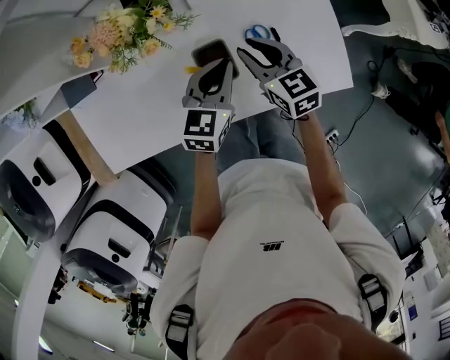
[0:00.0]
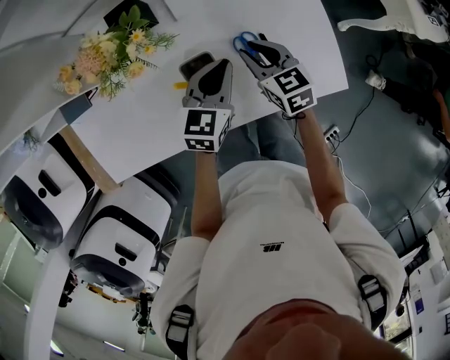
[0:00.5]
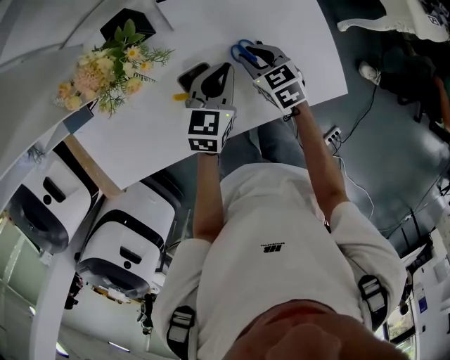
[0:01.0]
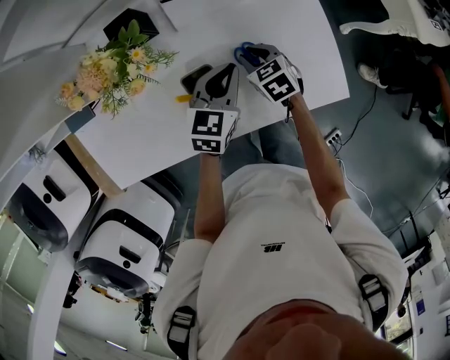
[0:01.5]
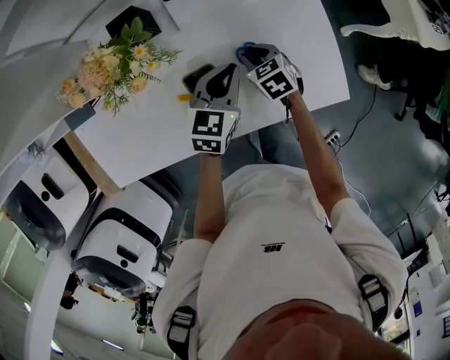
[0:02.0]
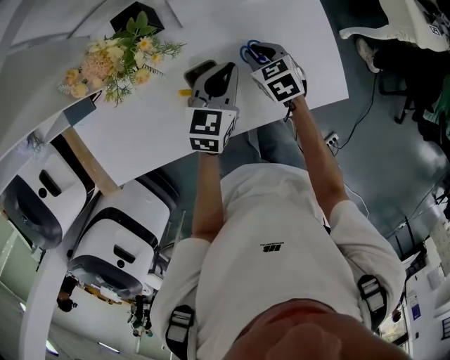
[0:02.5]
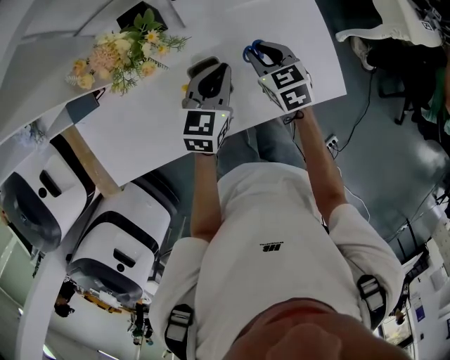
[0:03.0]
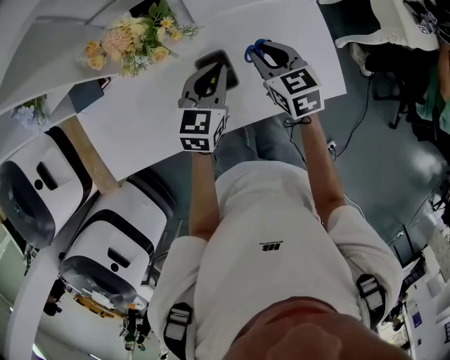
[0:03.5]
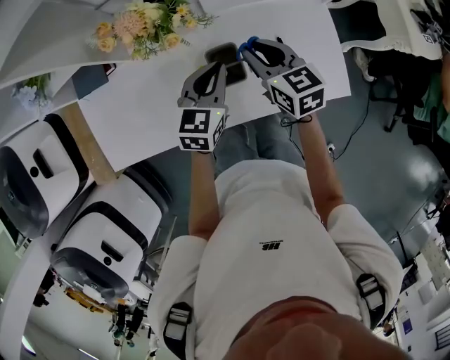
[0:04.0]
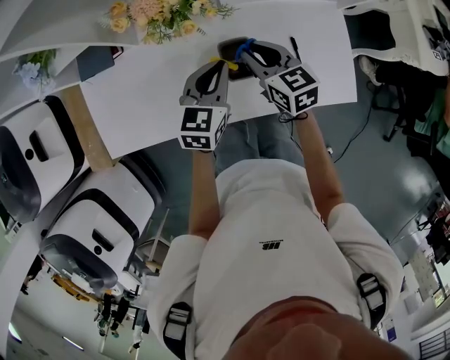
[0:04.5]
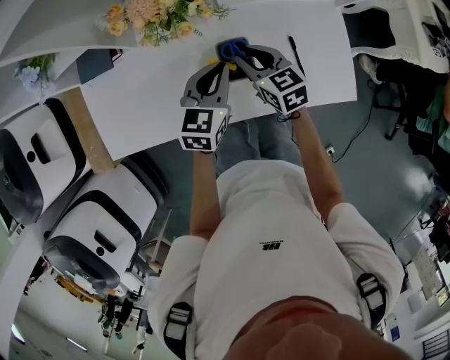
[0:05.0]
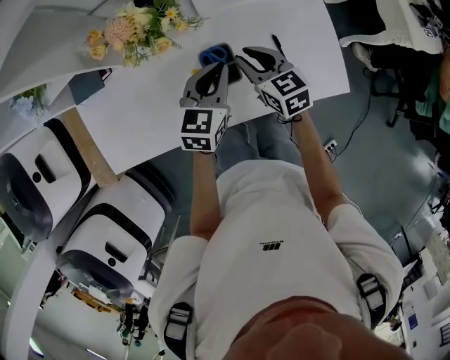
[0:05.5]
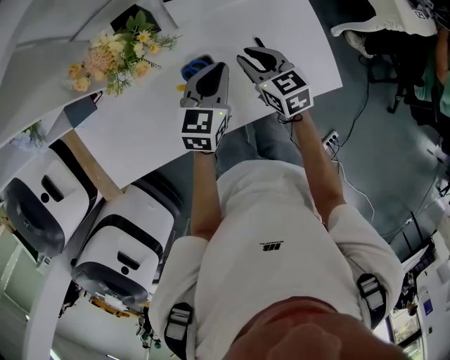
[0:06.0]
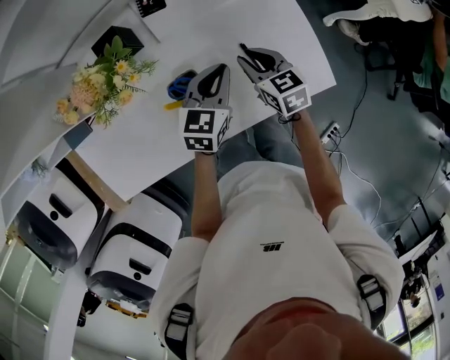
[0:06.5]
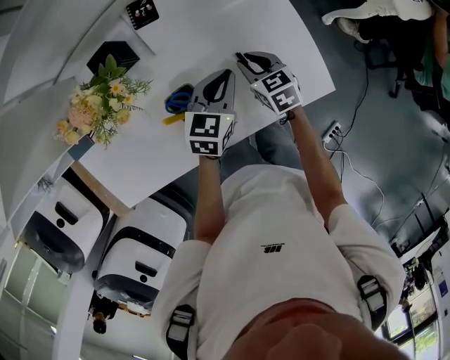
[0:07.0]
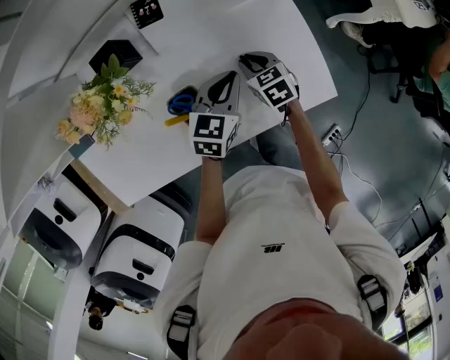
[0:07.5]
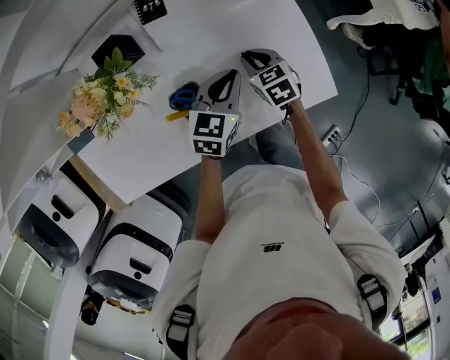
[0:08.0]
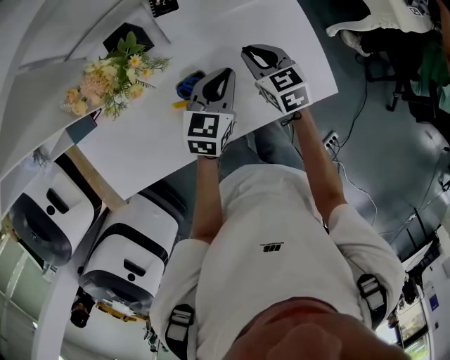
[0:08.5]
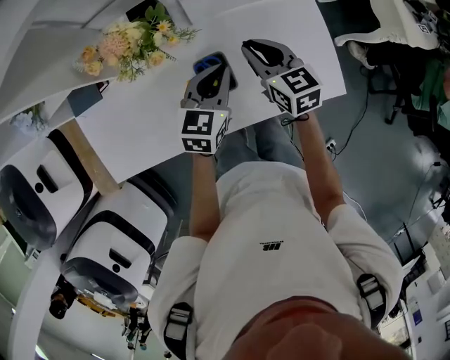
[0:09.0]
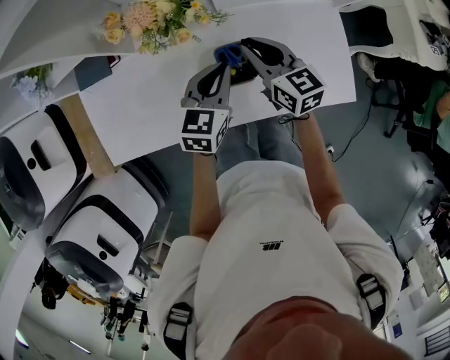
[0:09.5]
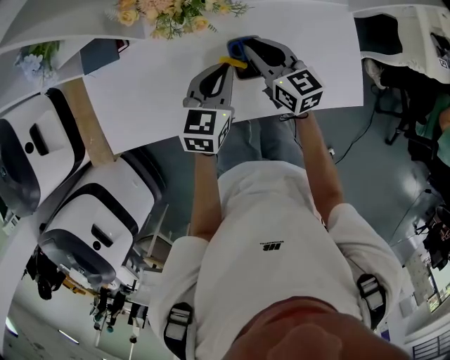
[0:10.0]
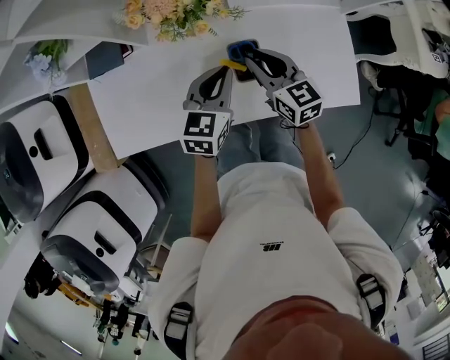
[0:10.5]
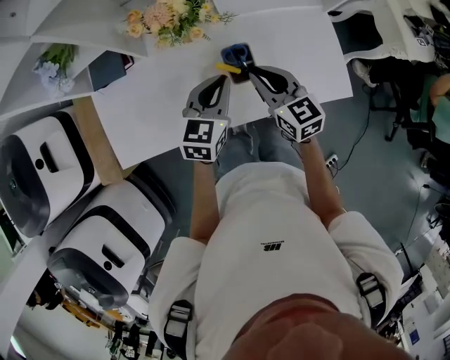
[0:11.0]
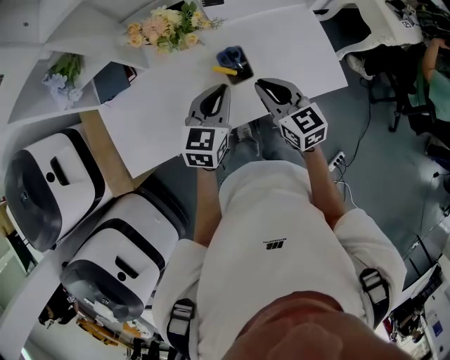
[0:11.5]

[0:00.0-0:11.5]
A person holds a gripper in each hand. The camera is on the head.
0.0 to 2.0 s: The right gripper shifts roughly 15 cm downward, and swivels about 30 degrees. Meanwhile the left gripper shifts some 5 cm to the right.
2.0 to 4.0 s: The left gripper heads to the left and upward, covering approximately 10 cm. Meanwhile the right gripper shifts some 20 cm upward, and changes its angle by approximately 30 degrees.
4.0 to 6.0 s: The left gripper moves to the right, about 5 cm; the right gripper moves downward and to the right, roughly 10 cm.
6.0 to 7.5 s: The left gripper heads to the right, covering some 10 cm, while the right gripper shifts about 15 cm downward and to the right.
7.5 to 9.5 s: The left gripper shifts about 20 cm to the left and upward; the right gripper heads upward and to the left, covering approximately 25 cm, and tilts its fingers about 30 degrees upward.
9.5 to 11.5 s: The left gripper is displaced backward and upward by approximately 10 cm. Meanwhile the right gripper is displaced backward by roughly 15 cm.

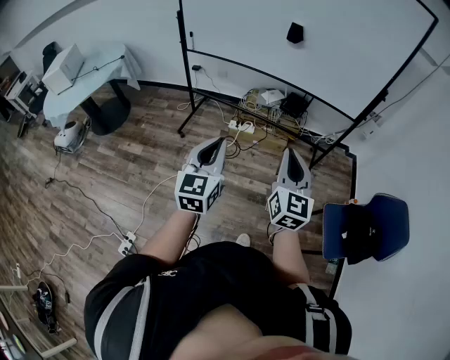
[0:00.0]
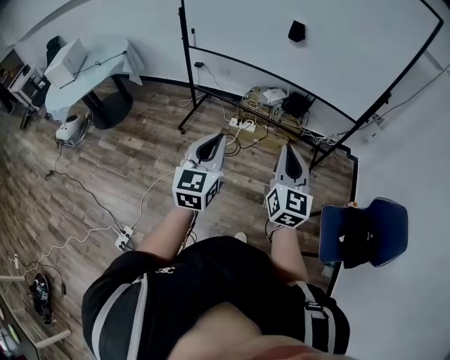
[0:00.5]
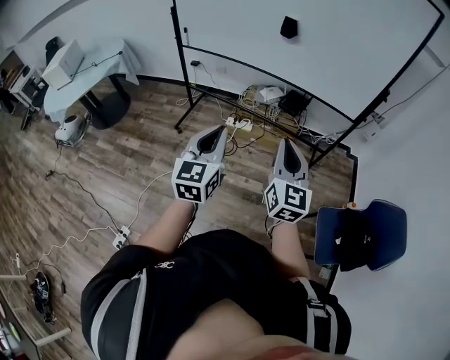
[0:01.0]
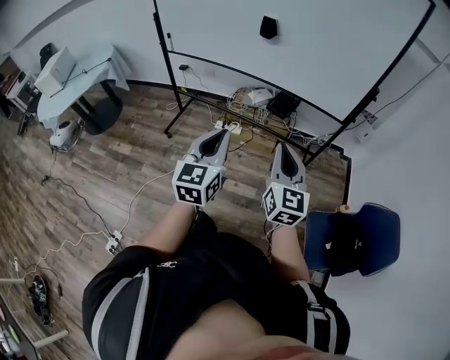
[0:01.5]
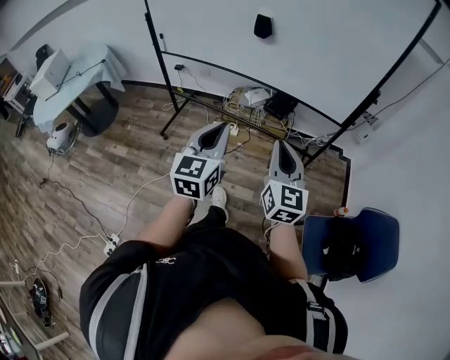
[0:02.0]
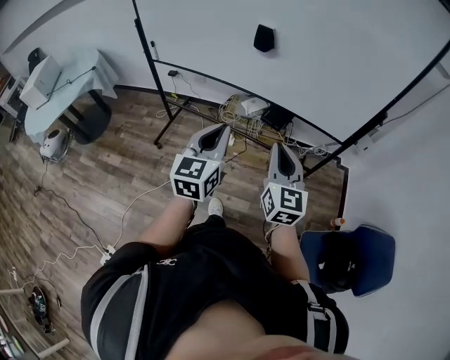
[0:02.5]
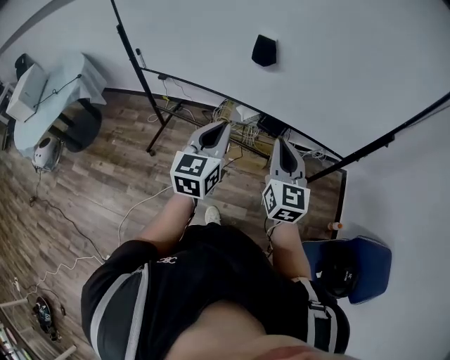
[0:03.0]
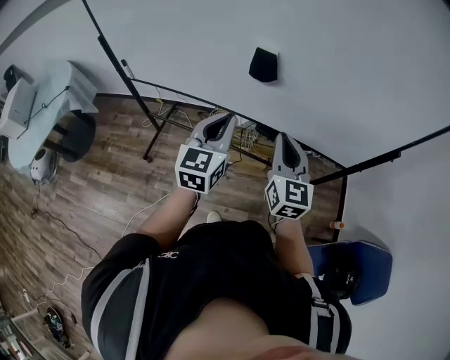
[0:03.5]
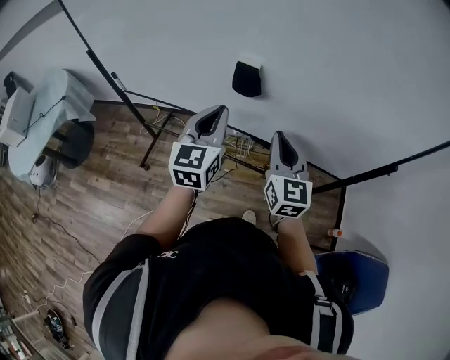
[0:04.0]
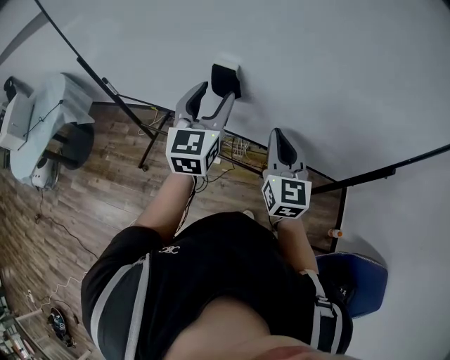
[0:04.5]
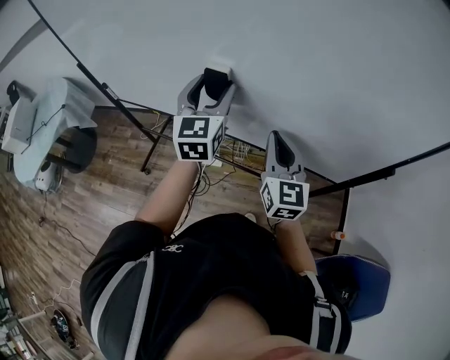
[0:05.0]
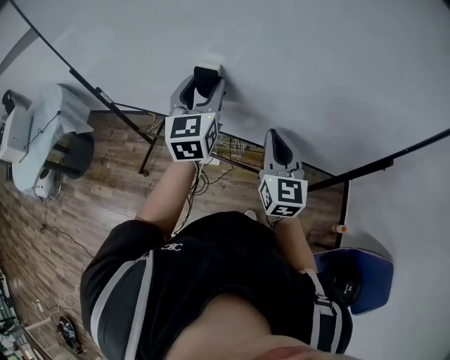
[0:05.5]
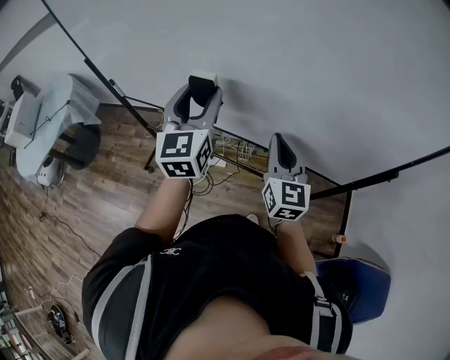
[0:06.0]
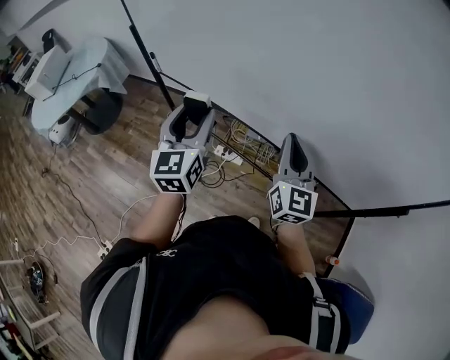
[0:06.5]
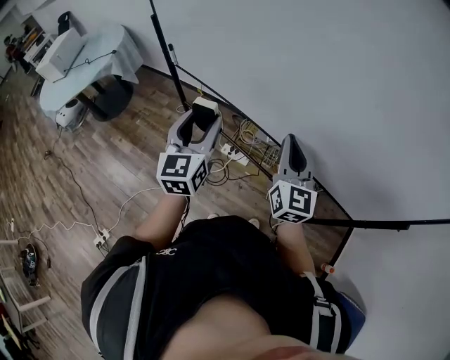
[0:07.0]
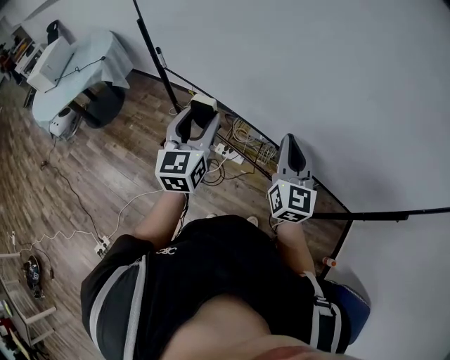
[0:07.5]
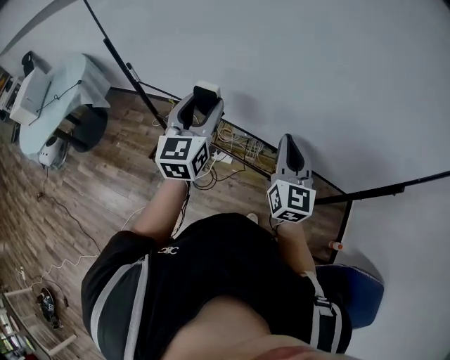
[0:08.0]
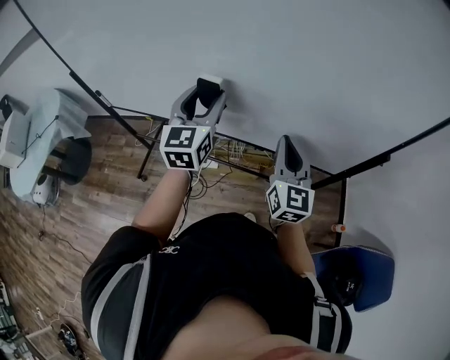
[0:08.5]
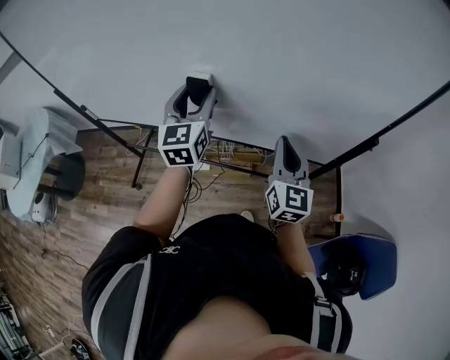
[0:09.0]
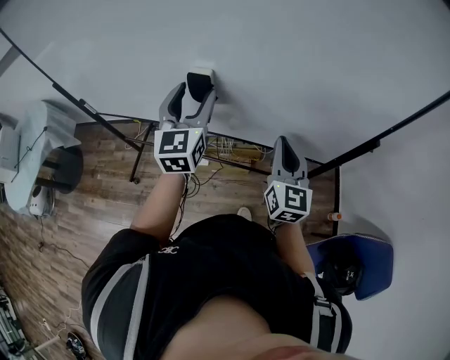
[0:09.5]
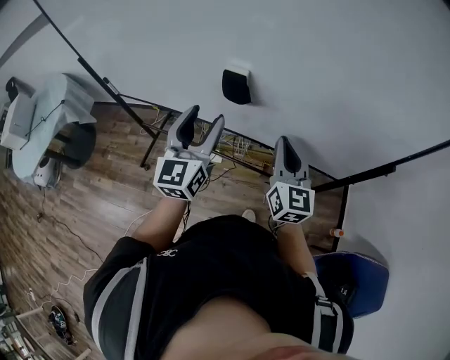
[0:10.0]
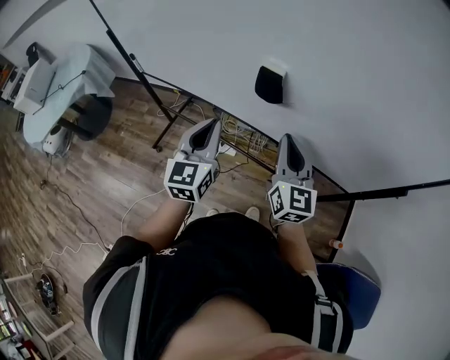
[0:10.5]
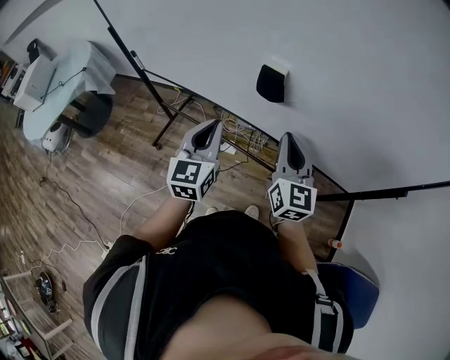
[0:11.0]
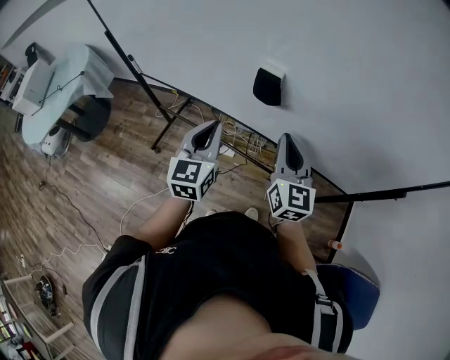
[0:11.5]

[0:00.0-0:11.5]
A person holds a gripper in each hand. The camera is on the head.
0.0 to 2.0 s: The left gripper goes roughly 20 cm to the right and forward, while the right gripper shifts about 20 cm forward and to the right.
2.0 to 4.0 s: The two grippers go some 40 cm forward.
4.0 to 6.0 s: The left gripper moves upward, roughly 5 cm, and opens.
6.0 to 7.5 s: The right gripper heads to the left, covering approximately 10 cm, while the left gripper heads to the left and downward, covering some 15 cm.
7.5 to 9.5 s: The left gripper shifts roughly 20 cm to the right and forward, and turns by some 20 degrees. The right gripper shifts about 20 cm to the right, and changes its angle by some 20 degrees.
9.5 to 11.5 s: The left gripper shifts roughly 15 cm to the left, backward and downward, and closes; the right gripper is displaced to the left by some 10 cm.

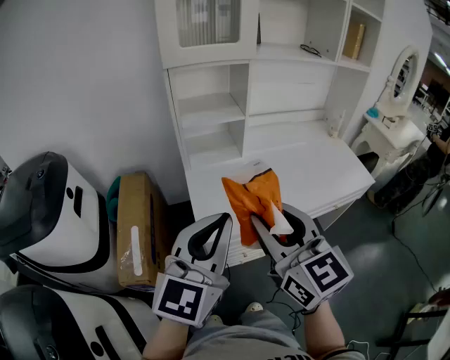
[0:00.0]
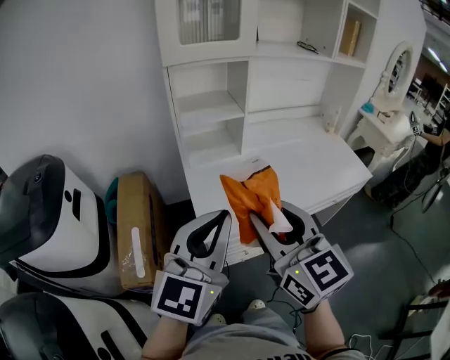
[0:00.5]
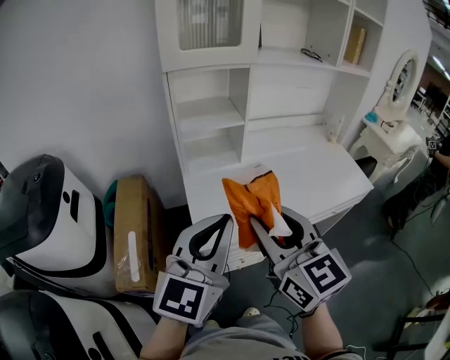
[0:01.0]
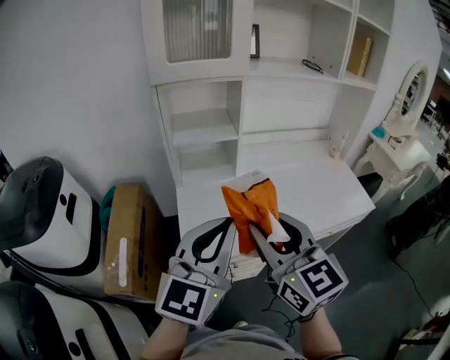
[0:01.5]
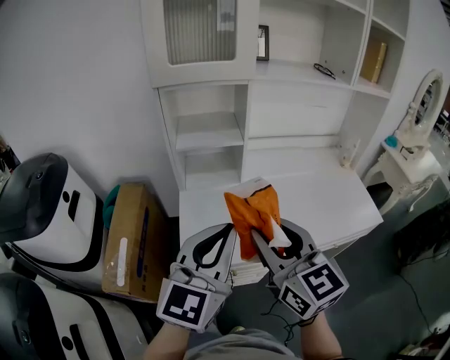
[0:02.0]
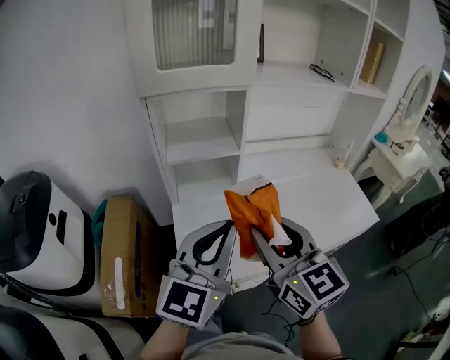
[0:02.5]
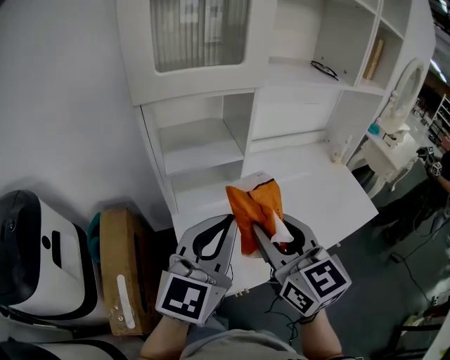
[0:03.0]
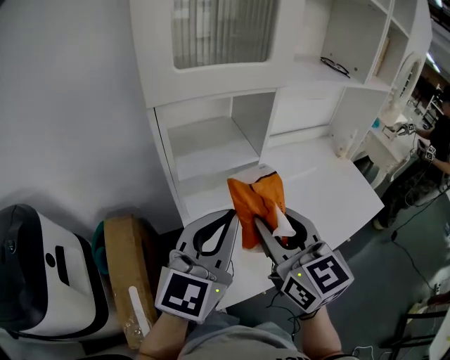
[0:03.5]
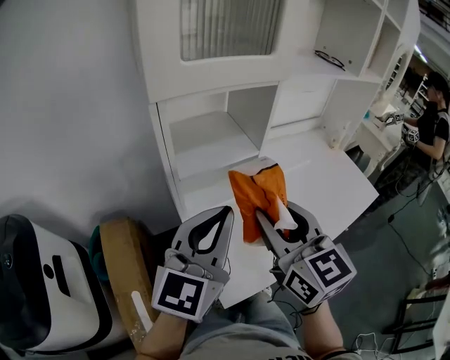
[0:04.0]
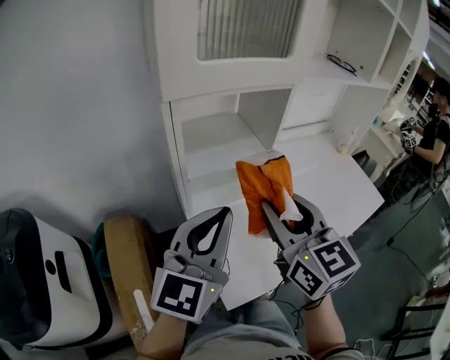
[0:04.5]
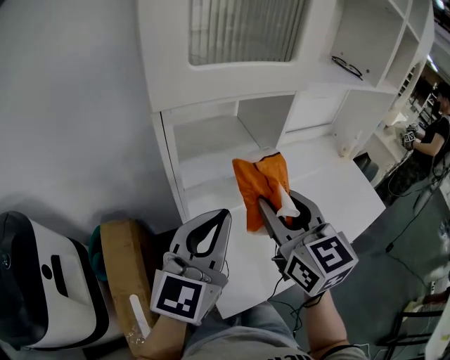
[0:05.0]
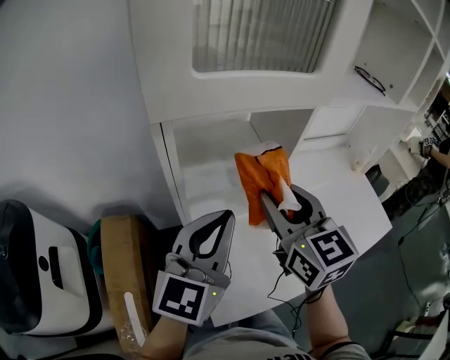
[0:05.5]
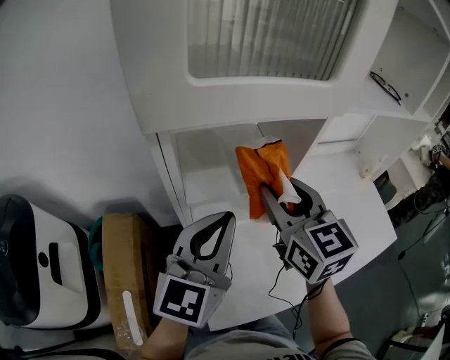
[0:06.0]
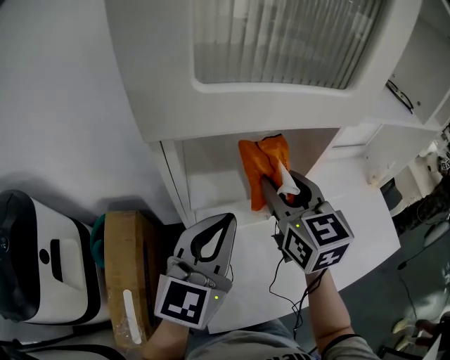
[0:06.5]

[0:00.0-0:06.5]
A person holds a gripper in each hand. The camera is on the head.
0.0 to 2.0 s: The grippers both shift forward and to the right by roughly 10 cm.
2.0 to 4.5 s: The left gripper moves to the left and forward, approximately 25 cm. The right gripper shifts approximately 20 cm forward and to the left.
4.5 to 6.5 s: The right gripper travels forward by approximately 20 cm, while the left gripper shifts some 10 cm forward.
